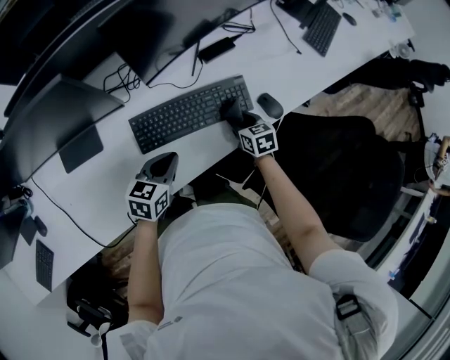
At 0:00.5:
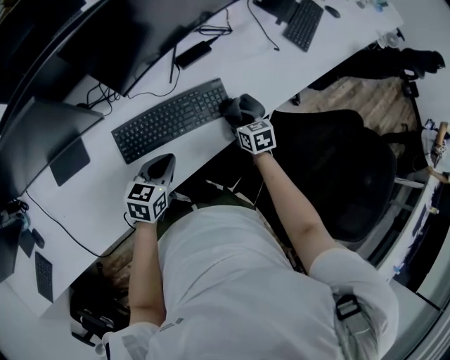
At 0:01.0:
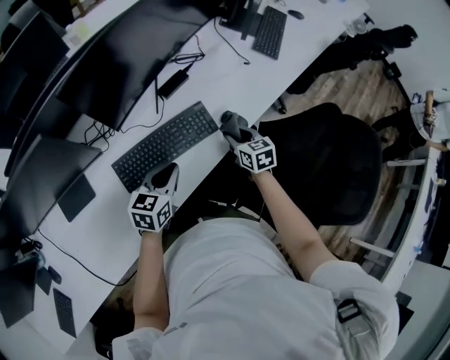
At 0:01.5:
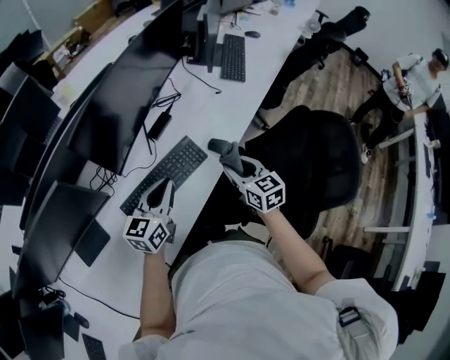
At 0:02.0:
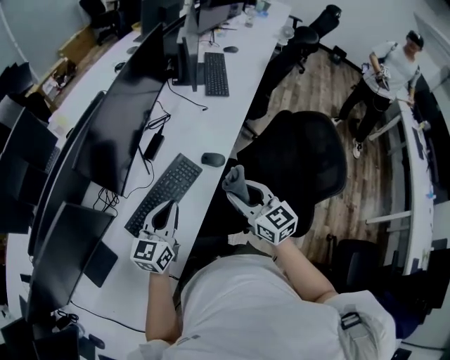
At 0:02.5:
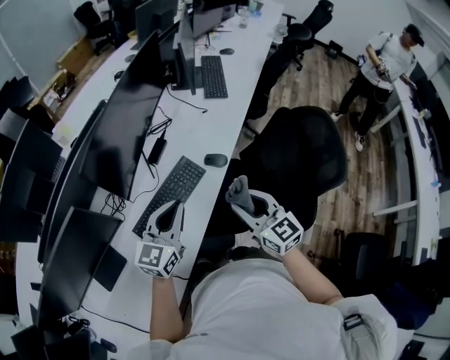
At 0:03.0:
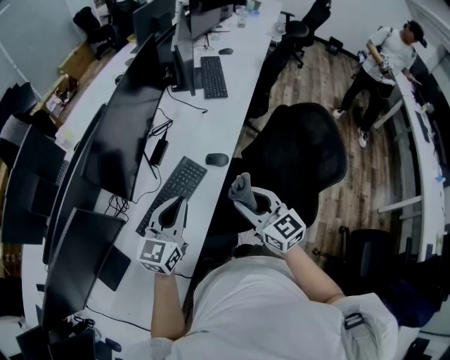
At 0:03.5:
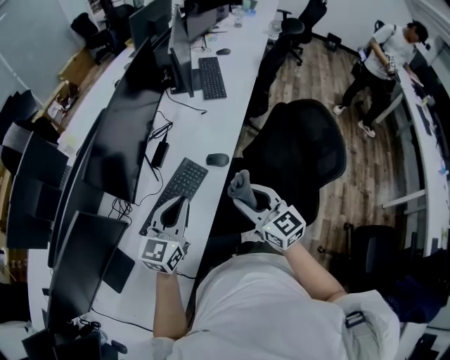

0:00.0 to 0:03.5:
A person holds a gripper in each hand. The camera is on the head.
0:00.0 to 0:02.0: The right gripper is displaced upward and backward by approximately 30 cm, and tilts its fingers roughly 30 degrees upward, while the left gripper is displaced upward and to the right by approximately 20 cm, and rotates roughly 40 degrees.
0:02.0 to 0:03.5: The left gripper travels upward by roughly 5 cm.

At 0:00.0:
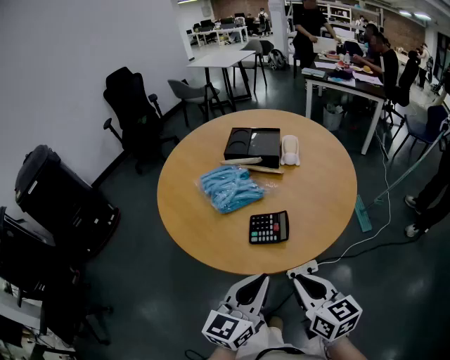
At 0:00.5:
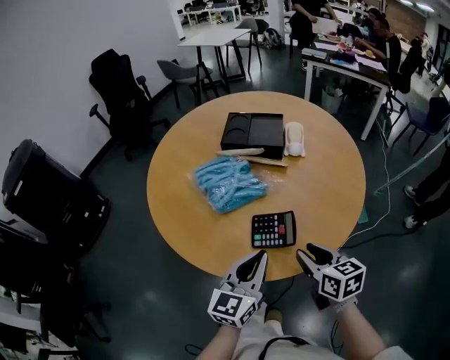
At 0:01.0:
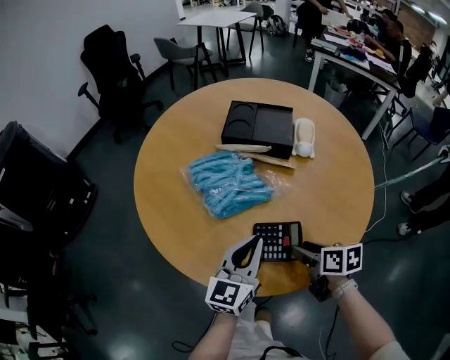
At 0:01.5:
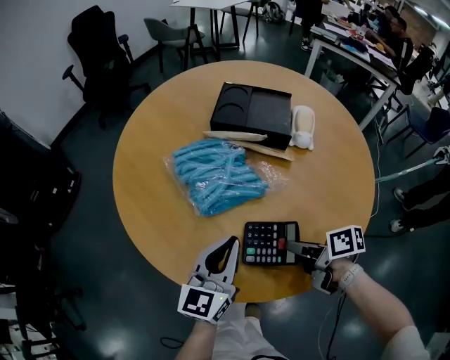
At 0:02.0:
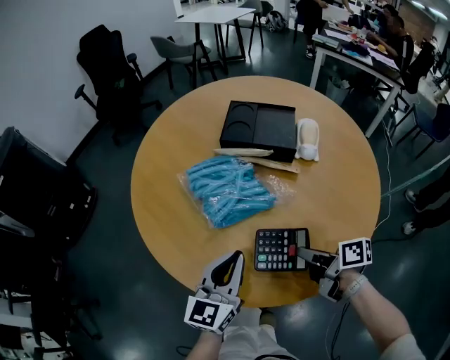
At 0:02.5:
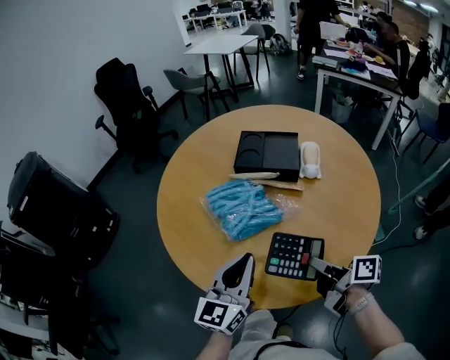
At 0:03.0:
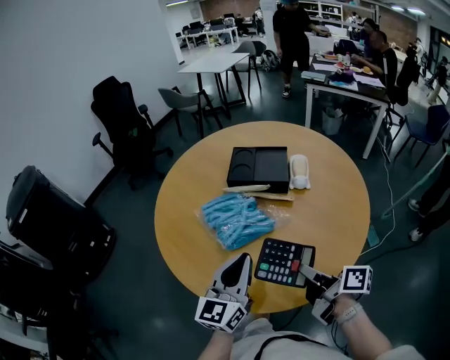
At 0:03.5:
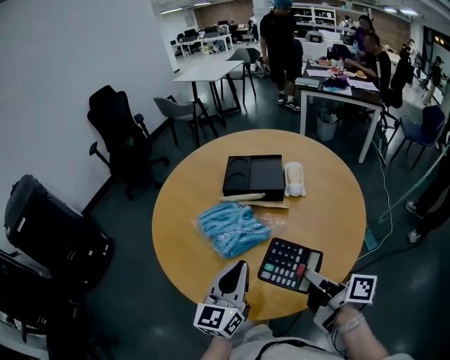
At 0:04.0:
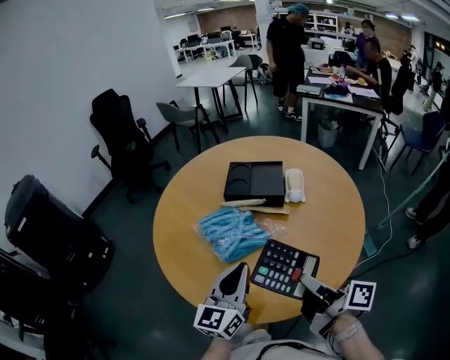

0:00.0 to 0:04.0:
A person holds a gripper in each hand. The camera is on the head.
0:00.0 to 0:02.0: The left gripper moves forward, approximately 25 cm, while the right gripper is displaced forward and downward by some 25 cm, twists approximately 40 degrees clockwise, seen from behind, and opens, then closes again.
0:02.0 to 0:04.0: The left gripper travels upward by about 10 cm. Meanwhile the right gripper is displaced upward by about 15 cm, and changes its angle by about 30 degrees.

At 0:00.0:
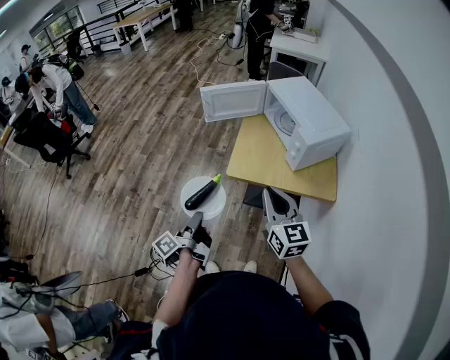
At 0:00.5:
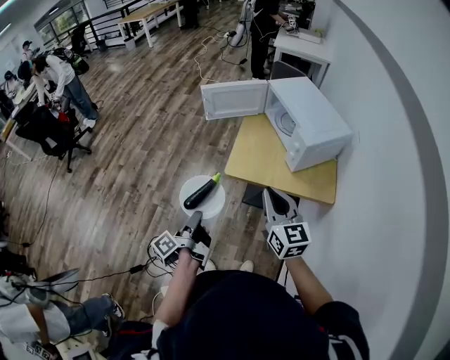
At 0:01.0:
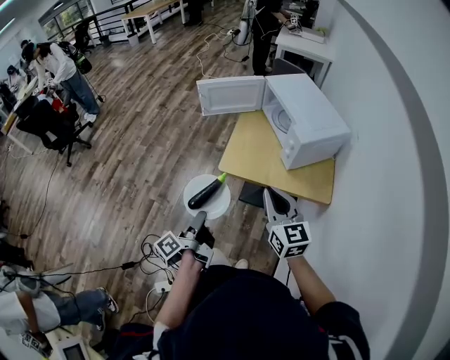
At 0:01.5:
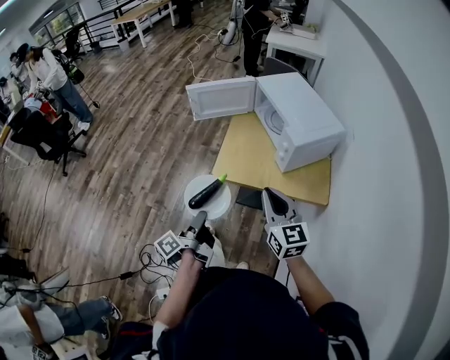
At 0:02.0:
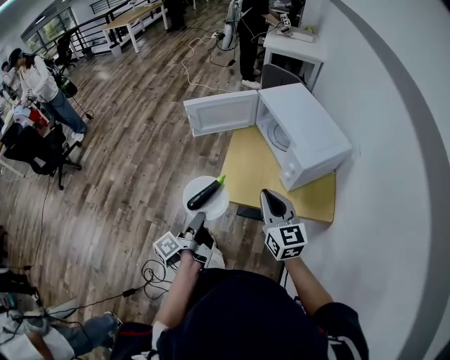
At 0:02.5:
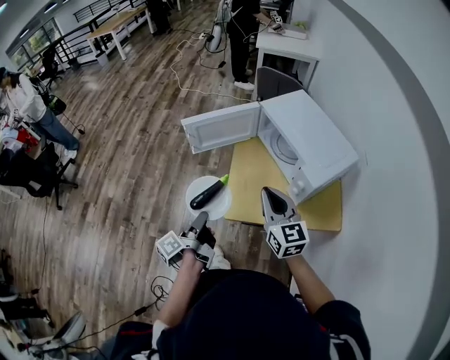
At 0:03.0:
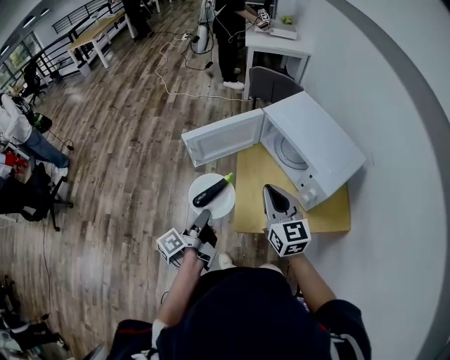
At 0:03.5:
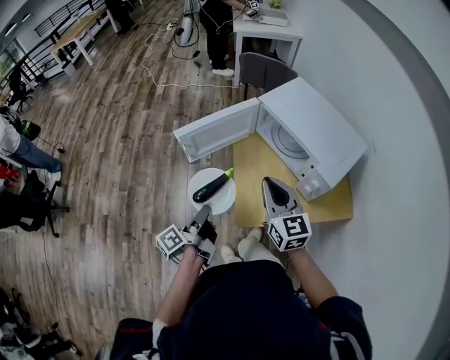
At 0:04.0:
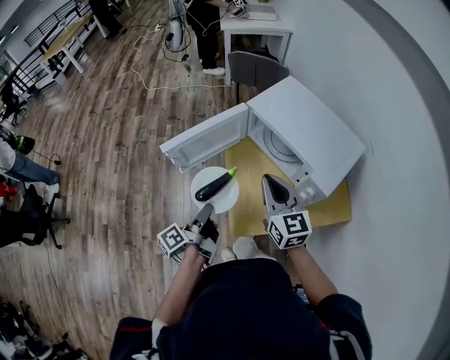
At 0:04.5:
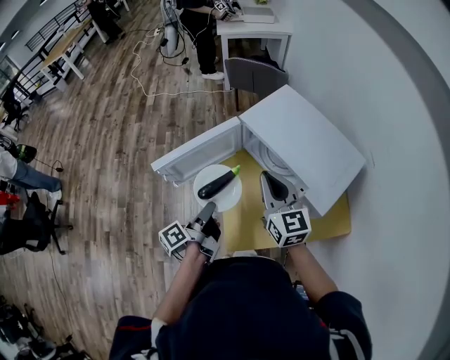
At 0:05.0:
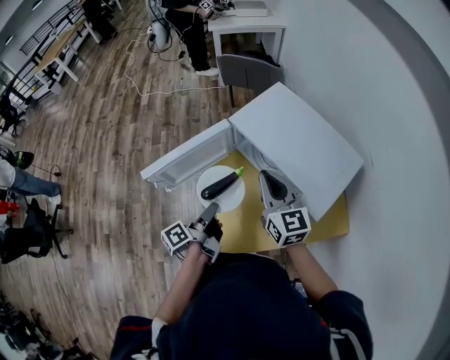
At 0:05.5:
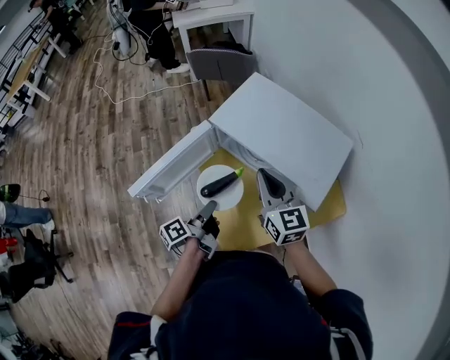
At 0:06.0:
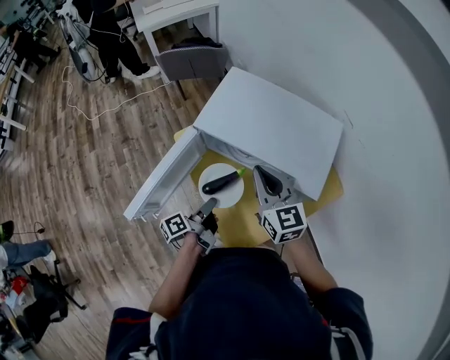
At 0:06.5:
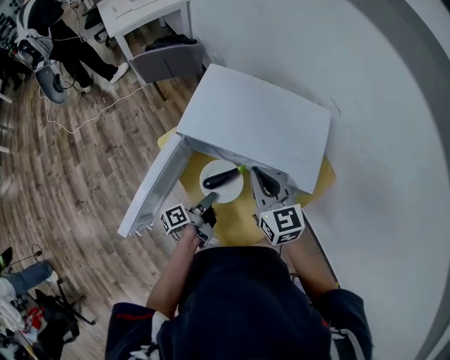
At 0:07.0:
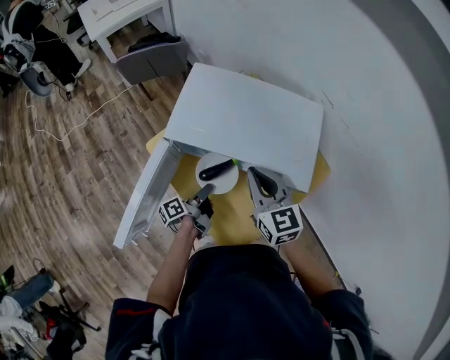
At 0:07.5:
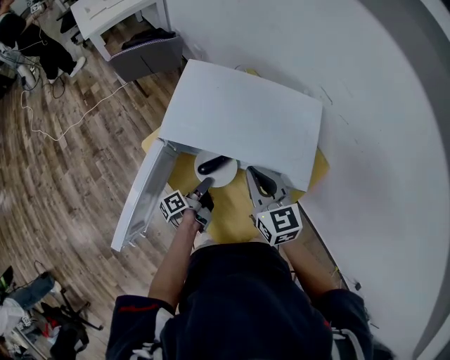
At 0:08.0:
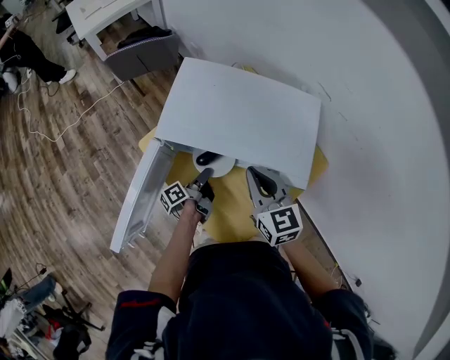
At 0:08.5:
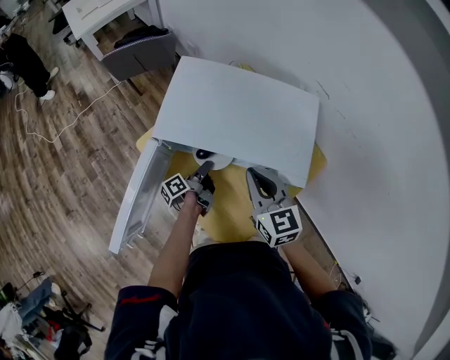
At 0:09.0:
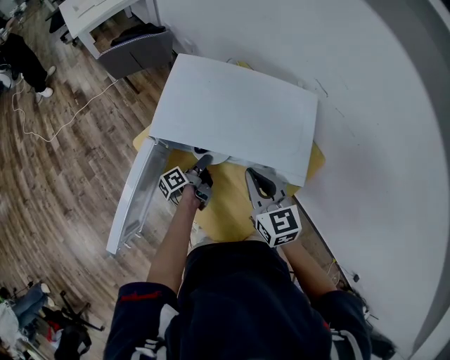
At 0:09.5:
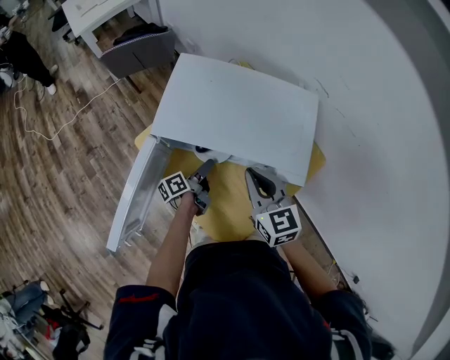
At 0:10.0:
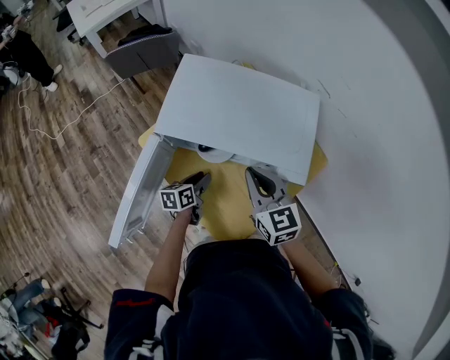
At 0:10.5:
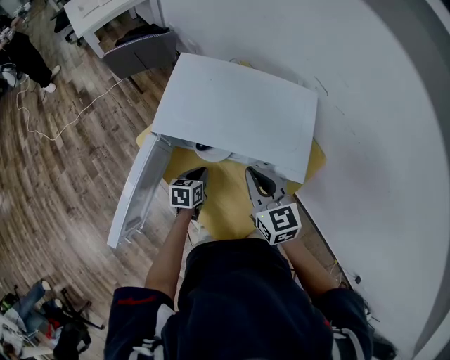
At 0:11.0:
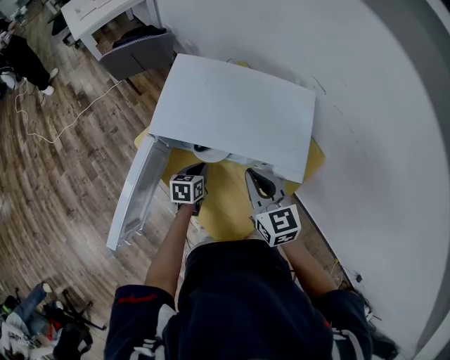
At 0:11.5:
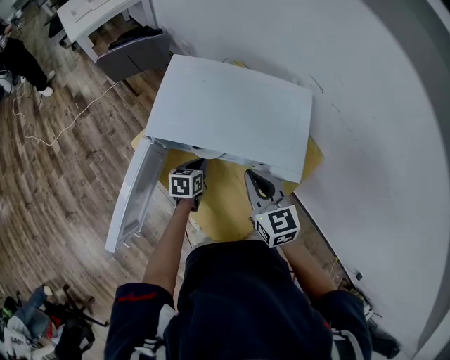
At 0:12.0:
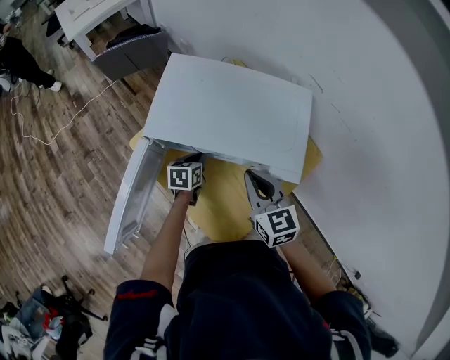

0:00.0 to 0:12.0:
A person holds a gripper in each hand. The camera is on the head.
0:00.0 to 0:02.0: The right gripper changes place by roughly 15 cm.
0:02.0 to 0:04.0: The right gripper ends up roughly 25 cm from where it was.
0:04.0 to 0:06.0: The right gripper changes place by about 15 cm.
0:06.0 to 0:08.0: The right gripper moves approximately 5 cm.

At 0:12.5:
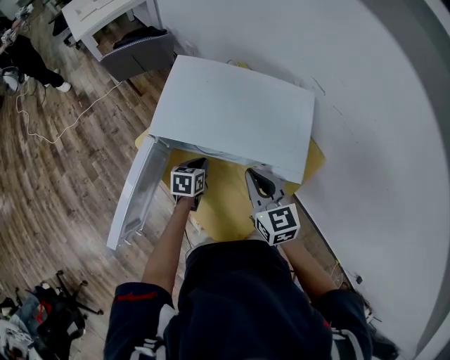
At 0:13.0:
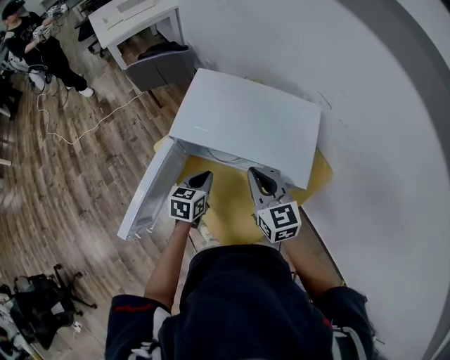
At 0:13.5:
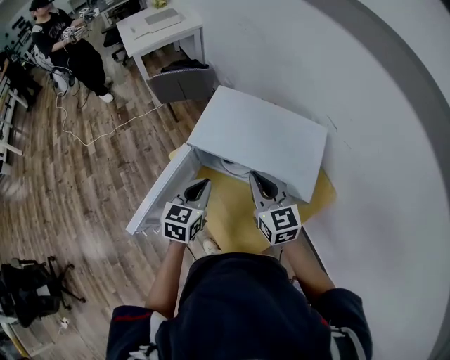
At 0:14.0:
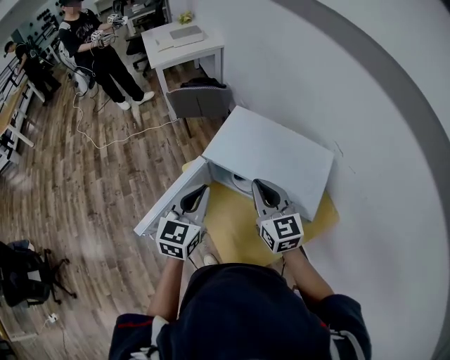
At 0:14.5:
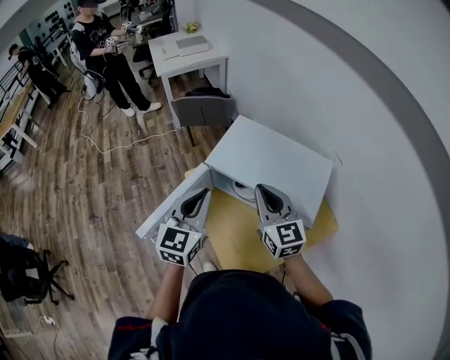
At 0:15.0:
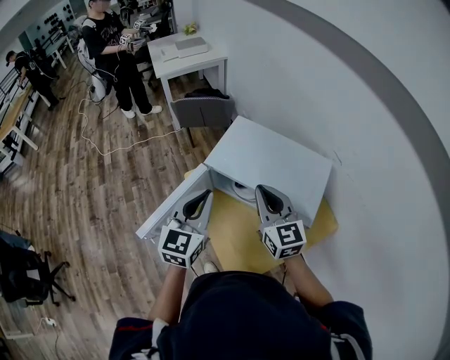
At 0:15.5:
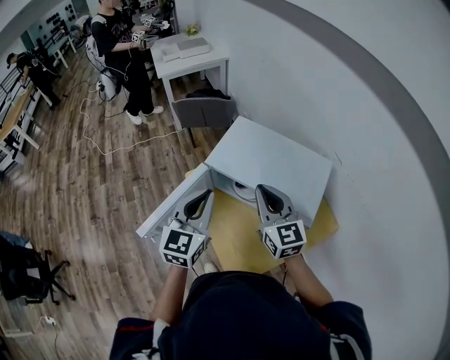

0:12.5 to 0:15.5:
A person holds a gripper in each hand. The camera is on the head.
0:12.5 to 0:14.0: The right gripper shifts approximately 10 cm upward, and swivels roughly 20 degrees.

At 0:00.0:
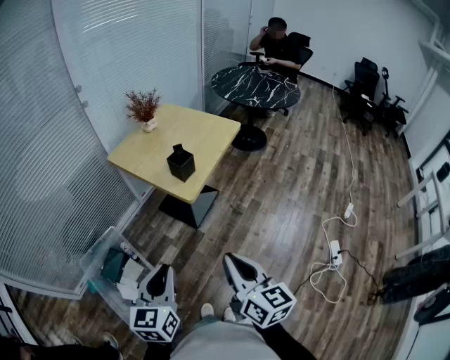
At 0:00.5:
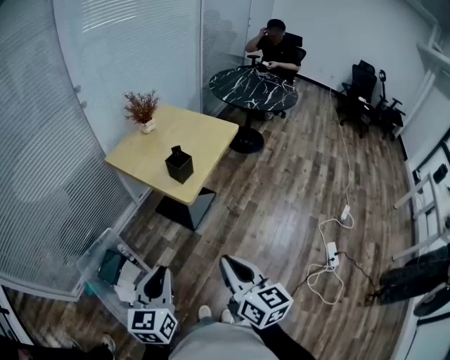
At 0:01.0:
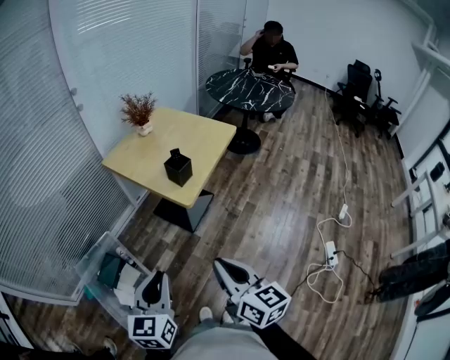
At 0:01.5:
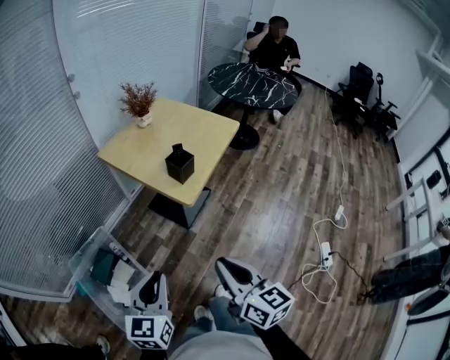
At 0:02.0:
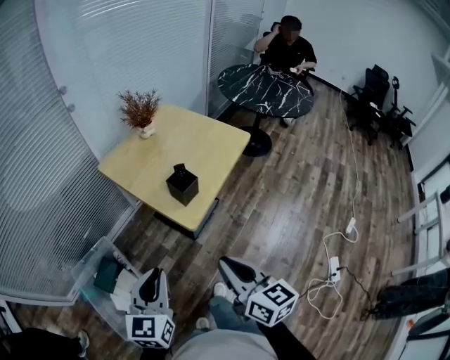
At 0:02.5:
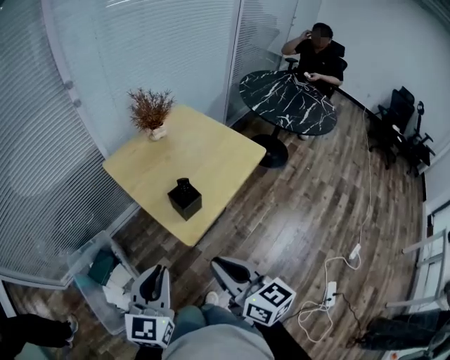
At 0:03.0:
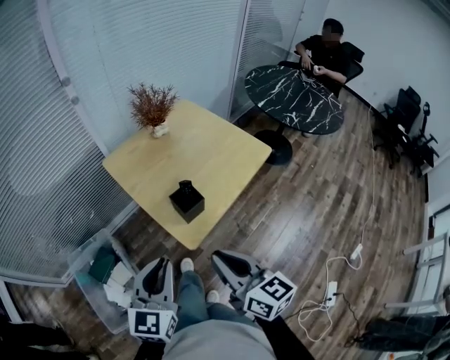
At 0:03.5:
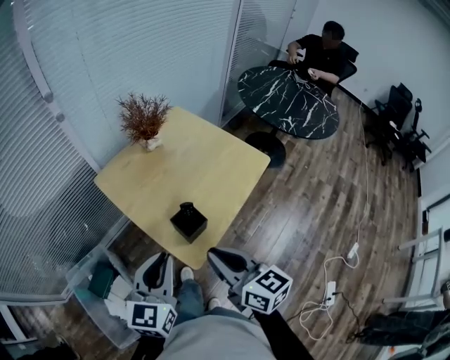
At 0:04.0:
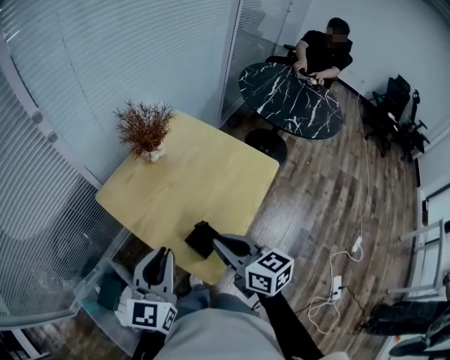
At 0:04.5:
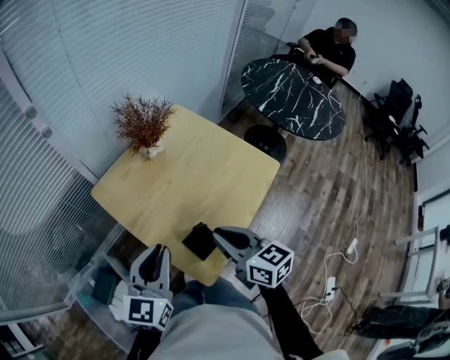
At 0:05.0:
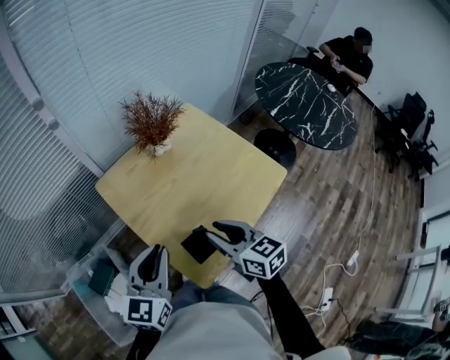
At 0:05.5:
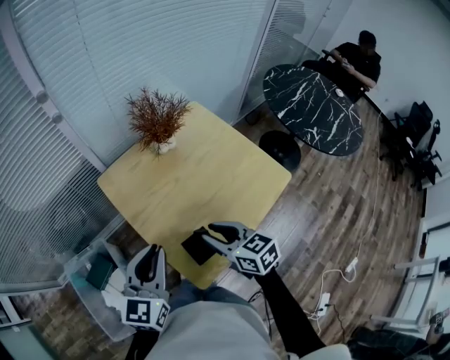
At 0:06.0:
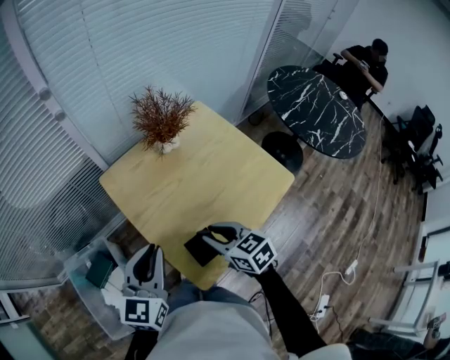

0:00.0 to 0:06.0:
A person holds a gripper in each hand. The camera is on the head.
0:00.0 to 0:02.0: The grippers both shift forward by some 15 cm.
0:02.0 to 0:04.0: Both grippers travel together forward, roughly 30 cm.
0:04.0 to 0:06.0: The right gripper heads downward and forward, covering some 10 cm, turns by approximately 30 degrees, and opens up.
